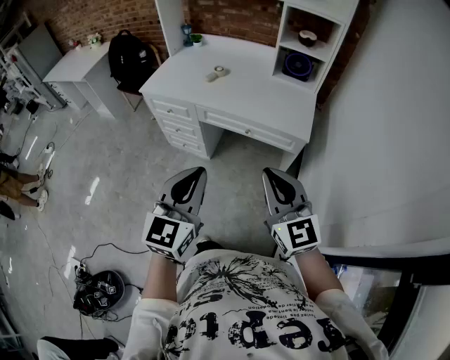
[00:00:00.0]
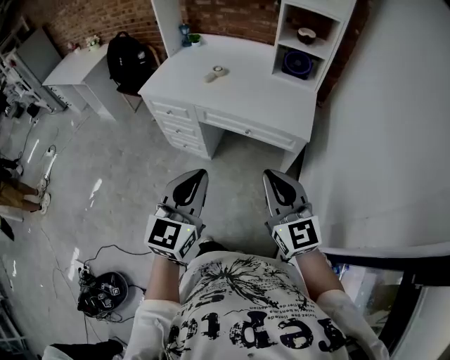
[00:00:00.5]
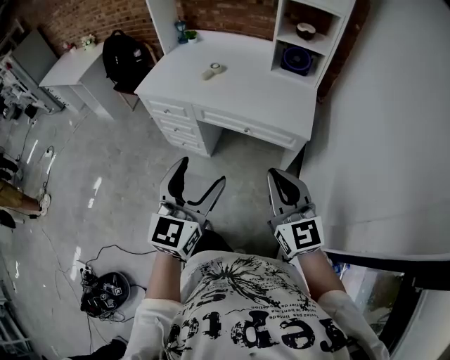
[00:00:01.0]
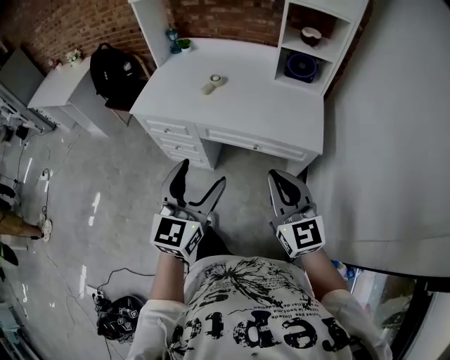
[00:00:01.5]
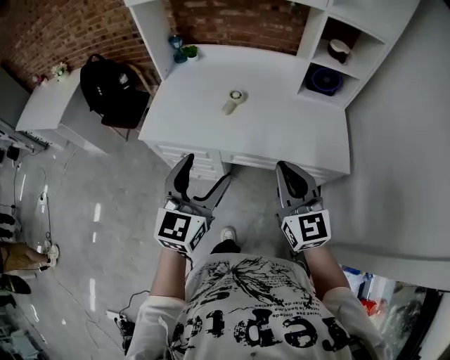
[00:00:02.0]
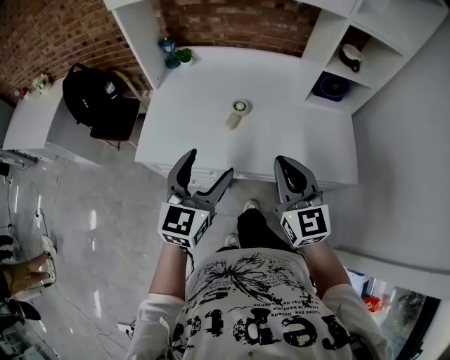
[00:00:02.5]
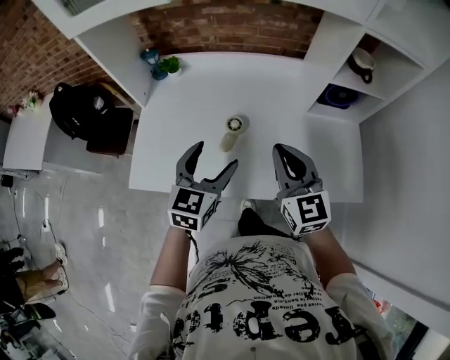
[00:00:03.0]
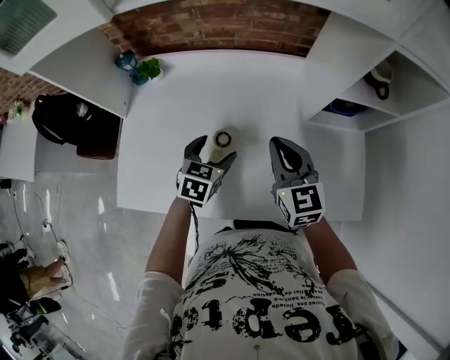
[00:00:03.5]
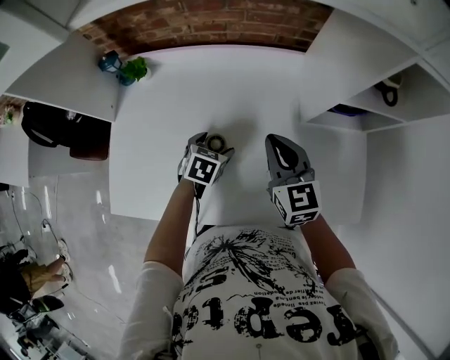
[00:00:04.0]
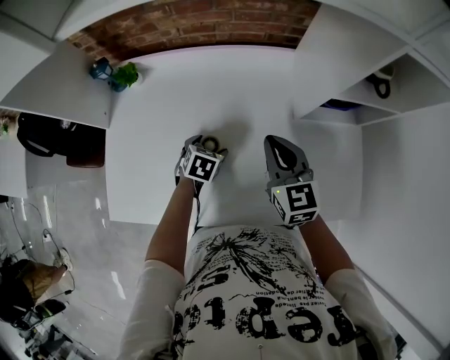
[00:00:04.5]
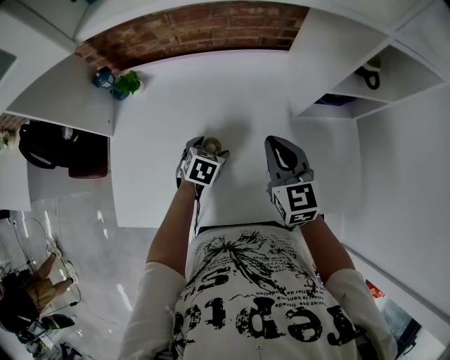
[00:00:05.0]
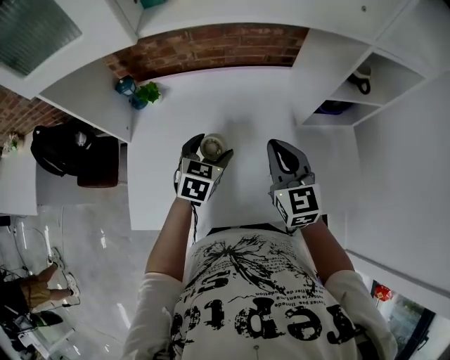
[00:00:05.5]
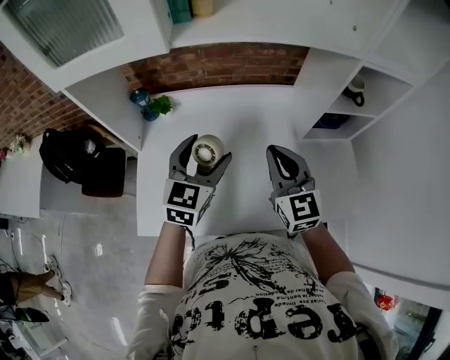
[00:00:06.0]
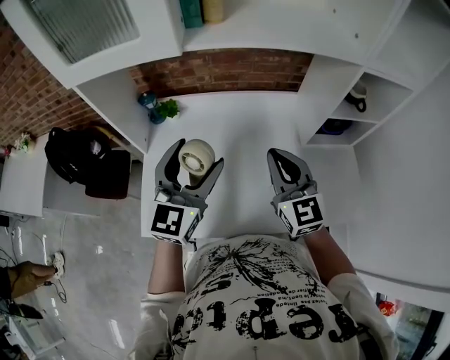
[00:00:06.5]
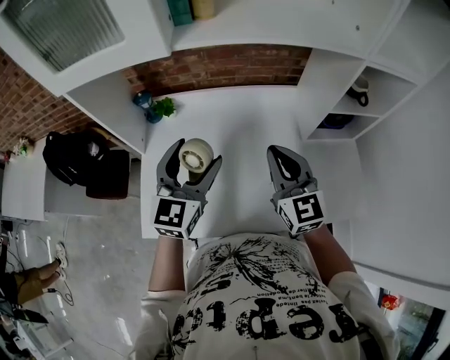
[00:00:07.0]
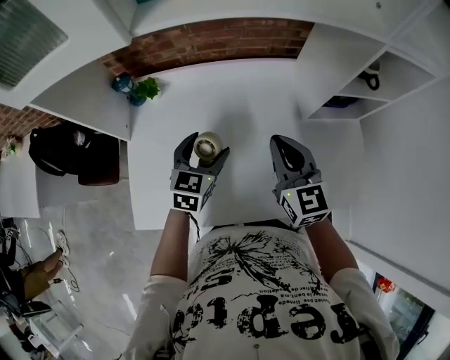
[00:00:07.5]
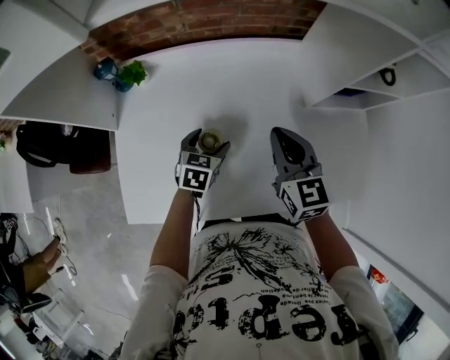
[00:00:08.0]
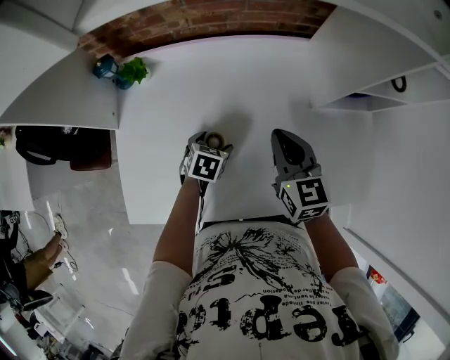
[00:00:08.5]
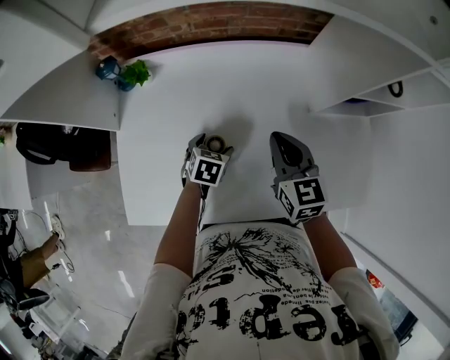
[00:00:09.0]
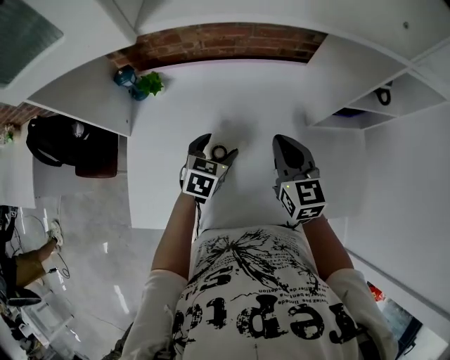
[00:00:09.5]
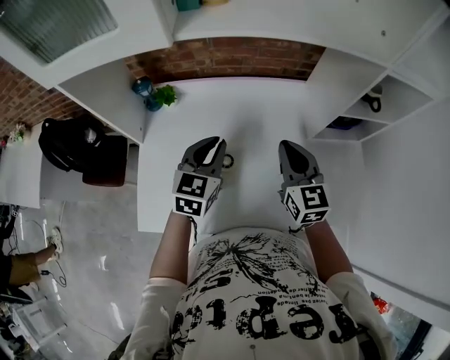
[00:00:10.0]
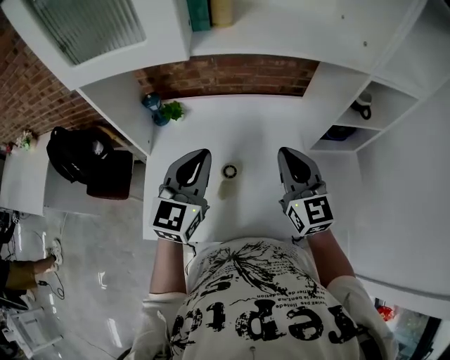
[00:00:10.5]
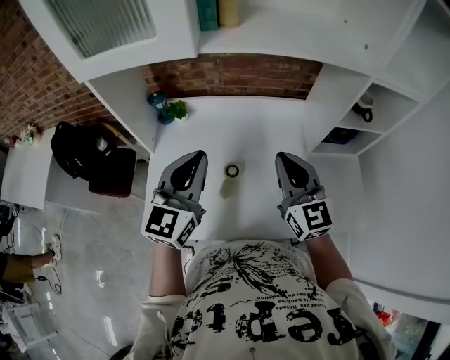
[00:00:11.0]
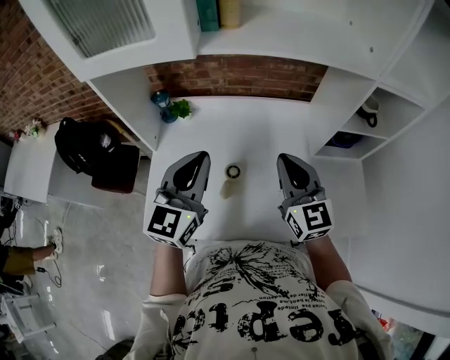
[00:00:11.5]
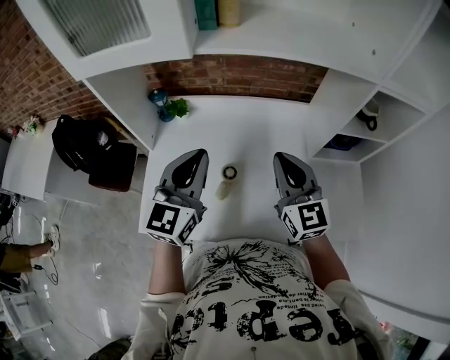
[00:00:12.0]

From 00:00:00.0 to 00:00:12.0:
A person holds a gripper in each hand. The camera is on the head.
From 00:00:00.0 to 00:00:02.0: The grippers both shift forward and to the left by about 40 cm. The left gripper opens.
From 00:00:02.0 to 00:00:04.0: The two grippers travel together, forward, approximately 50 cm. The left gripper moves downward, some 30 cm, and tips its fingers downward by some 50 degrees.
From 00:00:04.0 to 00:00:06.0: The right gripper heads upward, backward and to the left, covering about 20 cm, while the left gripper travels upward by some 30 cm, and angles its fingers upward, by roughly 40 degrees.
From 00:00:06.0 to 00:00:08.0: The left gripper moves downward, approximately 25 cm, and turns by about 30 degrees, while the right gripper goes about 15 cm downward and forward.
From 00:00:08.0 to 00:00:10.0: The right gripper moves upward, roughly 5 cm; the left gripper travels upward by about 20 cm, changes its angle by some 30 degrees, and closes up.
From 00:00:10.0 to 00:00:12.0: The left gripper moves upward and backward, about 15 cm. Meanwhile the right gripper goes roughly 5 cm upward.

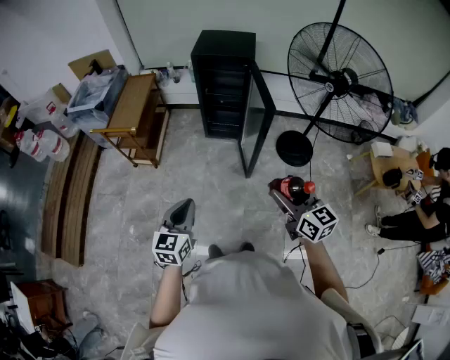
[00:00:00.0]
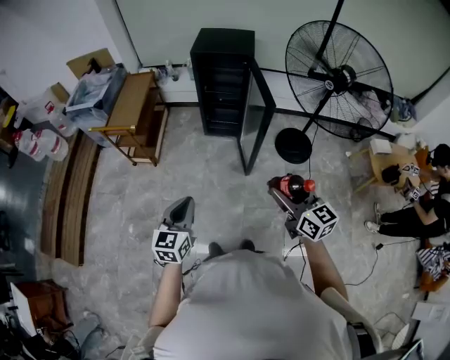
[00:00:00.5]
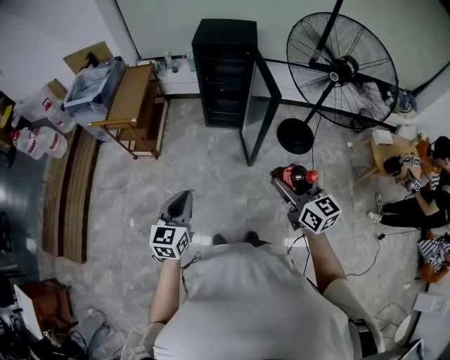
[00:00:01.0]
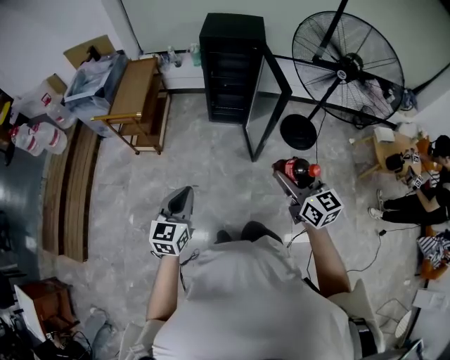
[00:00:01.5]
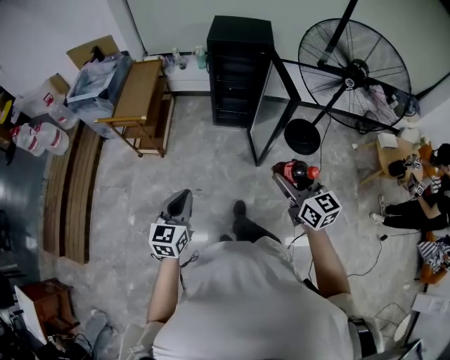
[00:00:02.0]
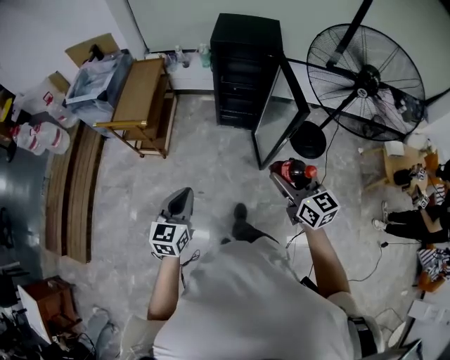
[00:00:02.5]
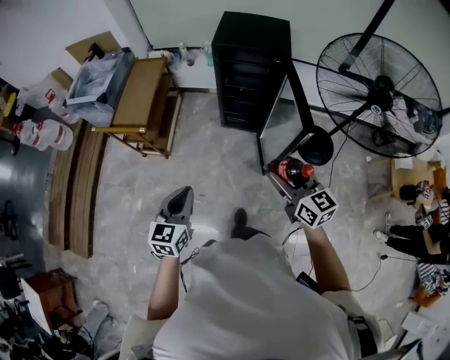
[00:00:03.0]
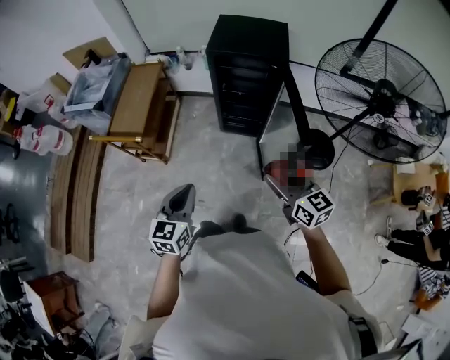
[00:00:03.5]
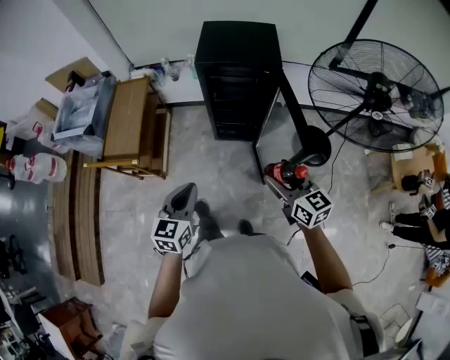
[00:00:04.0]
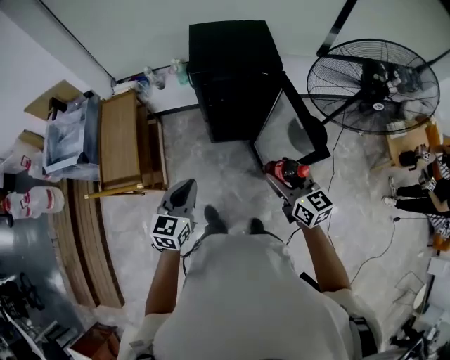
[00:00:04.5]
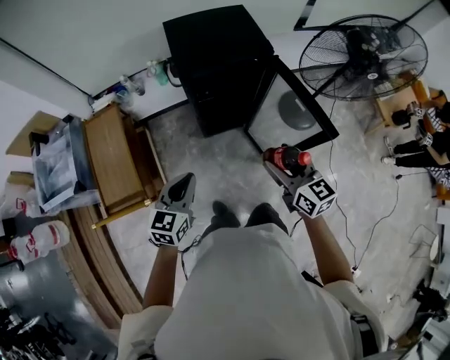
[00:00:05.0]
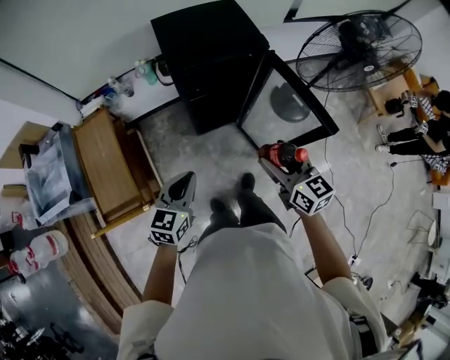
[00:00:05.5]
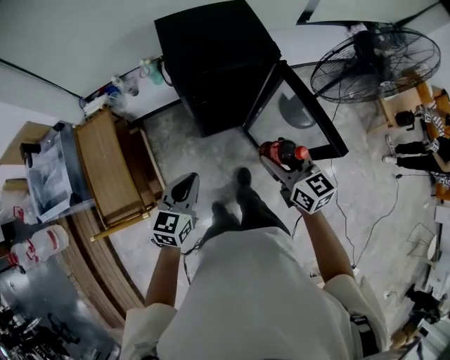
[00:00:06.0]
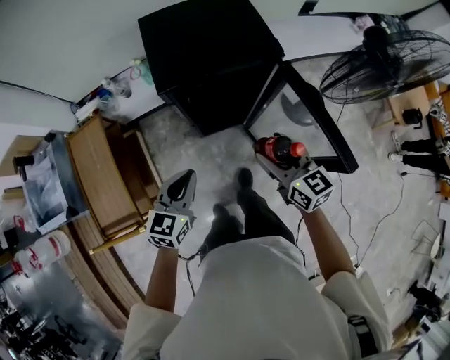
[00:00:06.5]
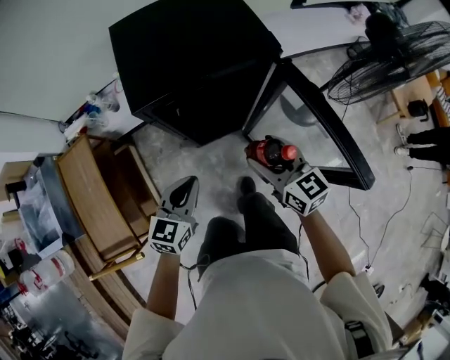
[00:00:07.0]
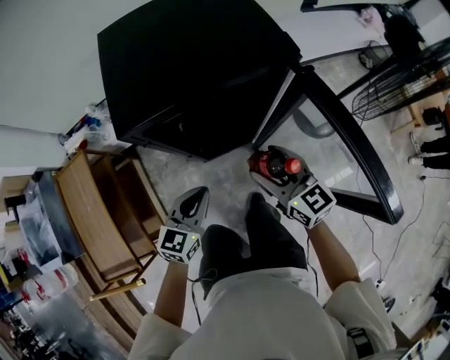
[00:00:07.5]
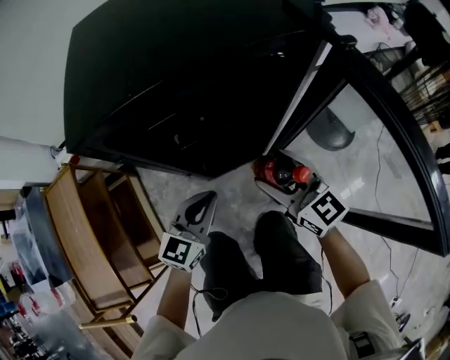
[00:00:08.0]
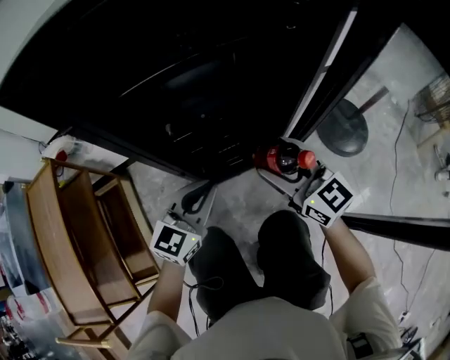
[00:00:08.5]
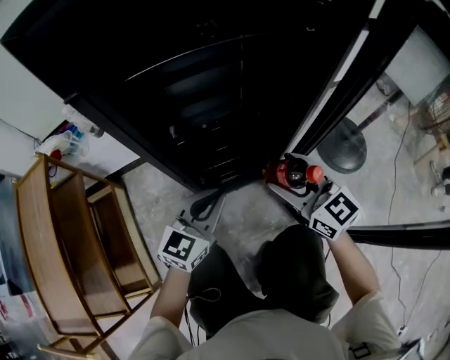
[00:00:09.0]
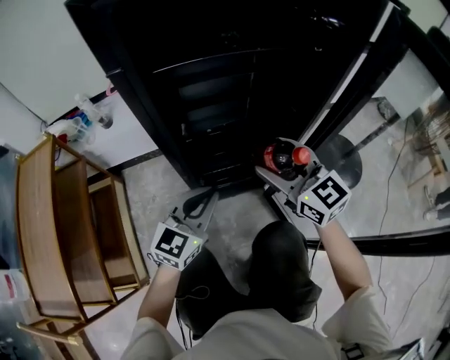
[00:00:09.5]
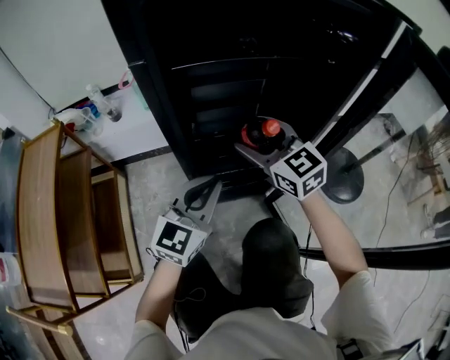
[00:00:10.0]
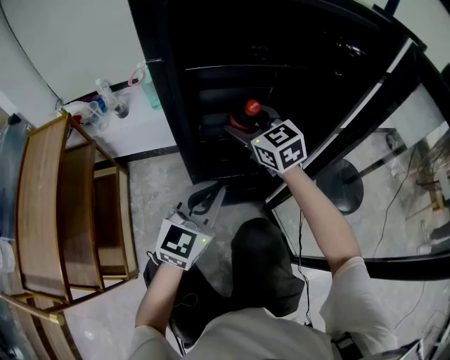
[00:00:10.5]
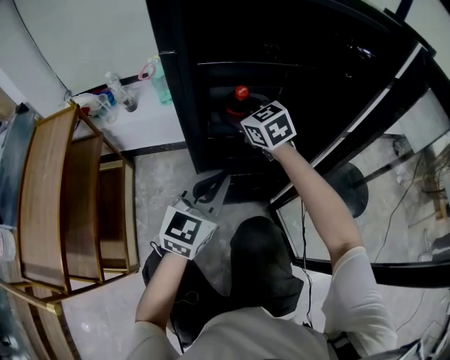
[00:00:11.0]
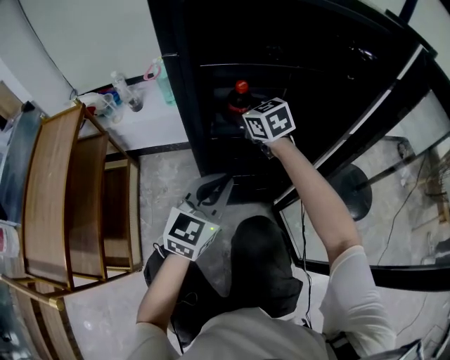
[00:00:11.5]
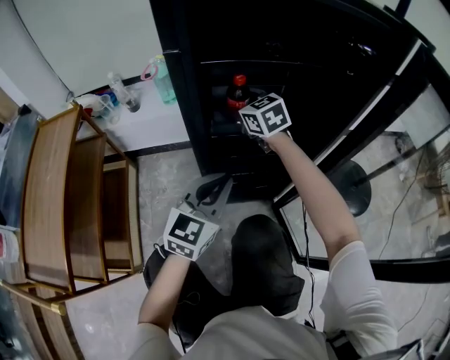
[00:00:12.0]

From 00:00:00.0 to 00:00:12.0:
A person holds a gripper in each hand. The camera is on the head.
From 00:00:00.0 to 00:00:02.0: The two grippers go some 10 cm to the left.
From 00:00:02.0 to 00:00:04.0: The two grippers go some 30 cm forward.
From 00:00:04.0 to 00:00:06.0: The left gripper shifts by some 25 cm, and swivels roughly 30 degrees; the right gripper changes place by roughly 20 cm, and changes its angle by some 20 degrees.
From 00:00:06.0 to 00:00:08.0: Both grippers travel together downward and forward, roughly 35 cm.
From 00:00:08.0 to 00:00:10.0: The left gripper travels downward by some 10 cm; the right gripper heads forward, to the left and downward, covering some 20 cm.
From 00:00:10.0 to 00:00:12.0: The right gripper moves forward and to the left, approximately 15 cm.

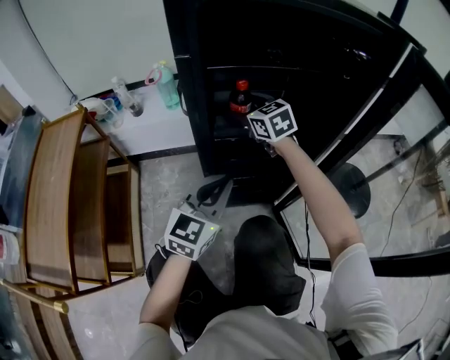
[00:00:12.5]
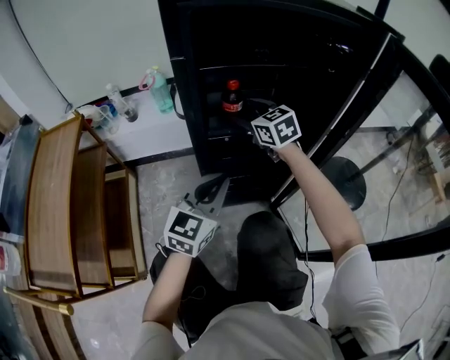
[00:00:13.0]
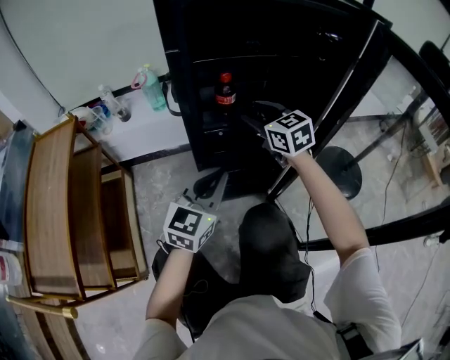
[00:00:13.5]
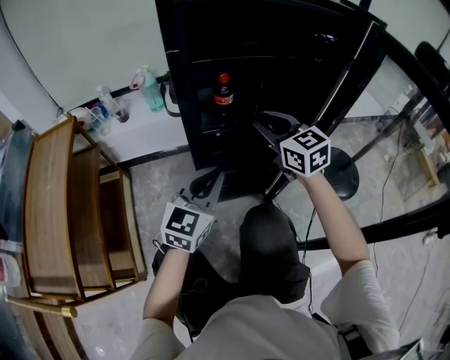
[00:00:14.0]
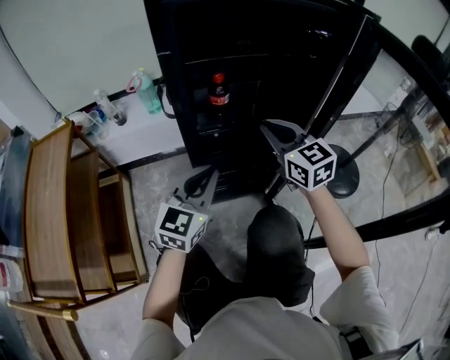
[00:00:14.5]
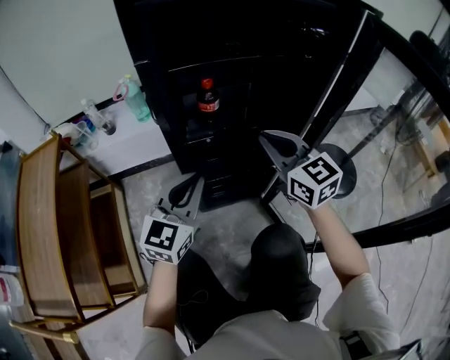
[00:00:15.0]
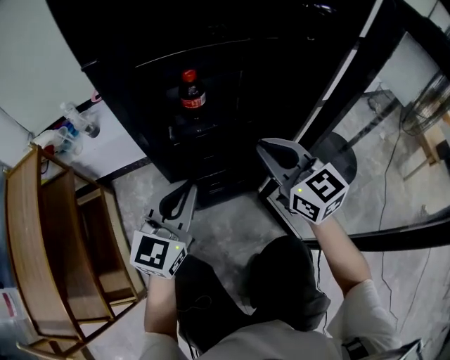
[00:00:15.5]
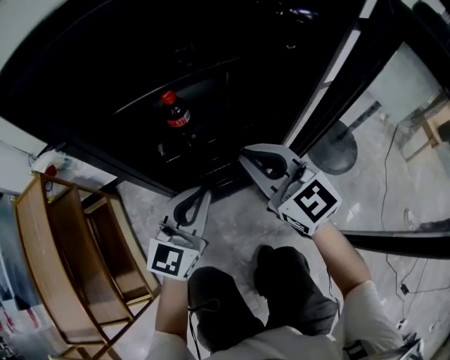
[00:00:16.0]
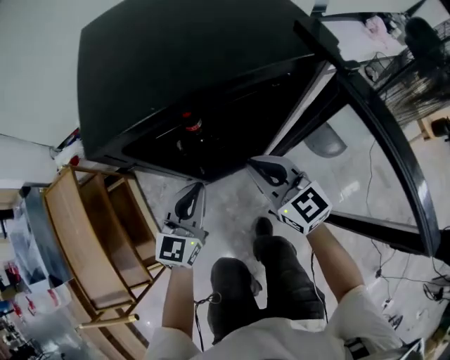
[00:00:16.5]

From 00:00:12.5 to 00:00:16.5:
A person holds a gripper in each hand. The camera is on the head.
From 00:00:12.5 to 00:00:14.5: The right gripper is displaced backward and to the right by approximately 20 cm, and closes.
From 00:00:14.5 to 00:00:16.5: Both grippers move upward, about 10 cm.
